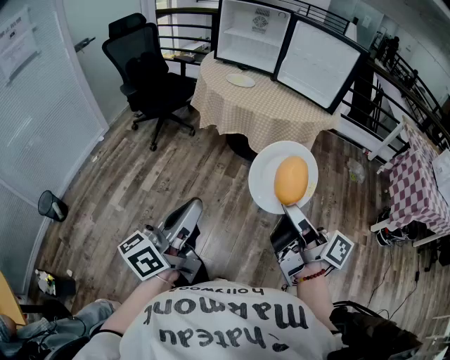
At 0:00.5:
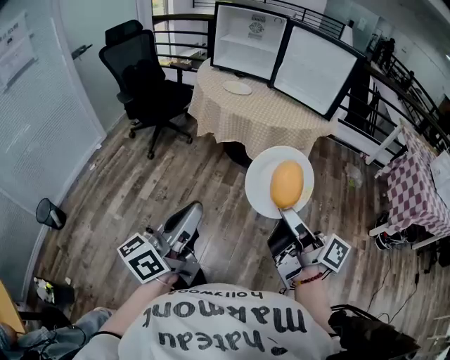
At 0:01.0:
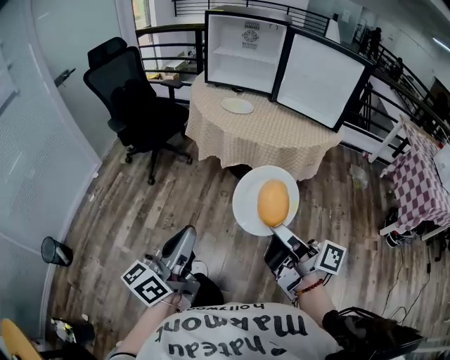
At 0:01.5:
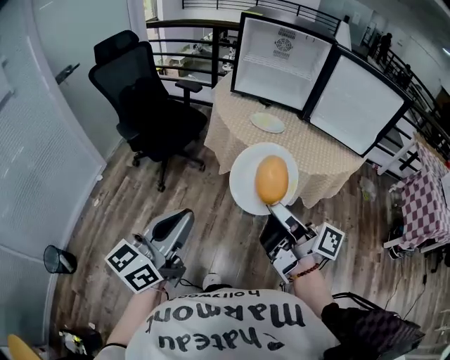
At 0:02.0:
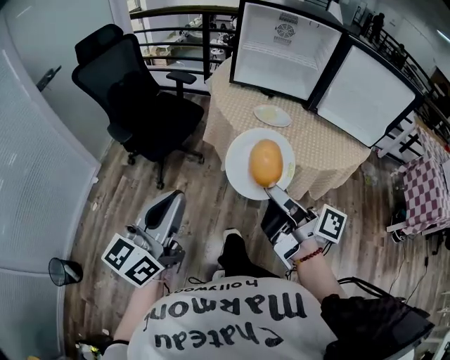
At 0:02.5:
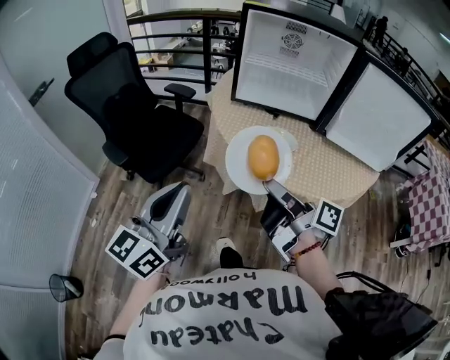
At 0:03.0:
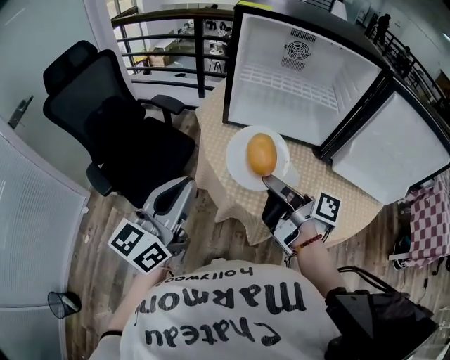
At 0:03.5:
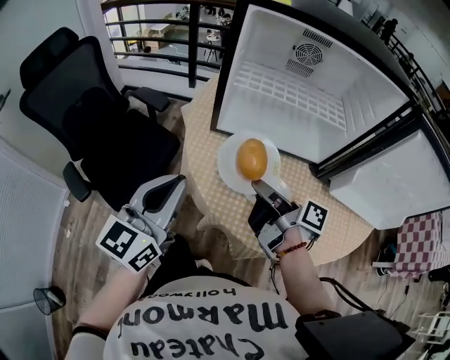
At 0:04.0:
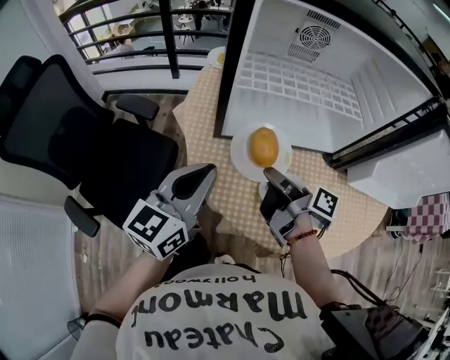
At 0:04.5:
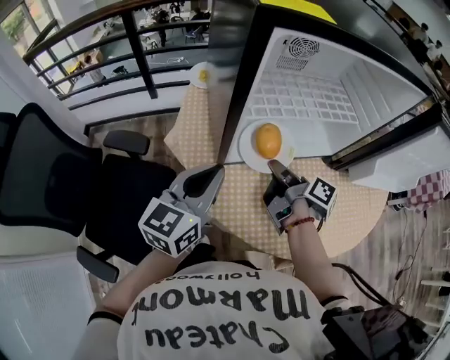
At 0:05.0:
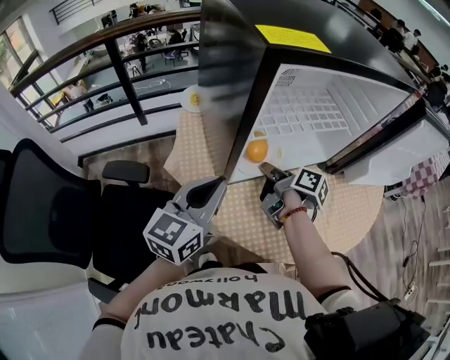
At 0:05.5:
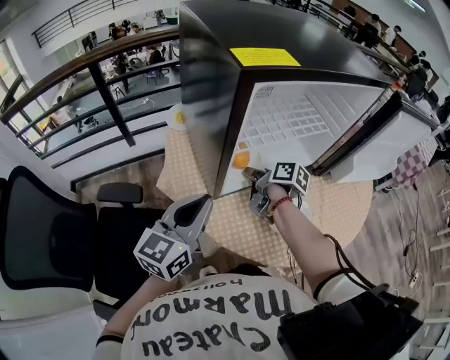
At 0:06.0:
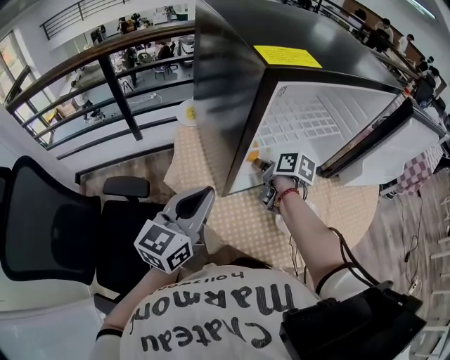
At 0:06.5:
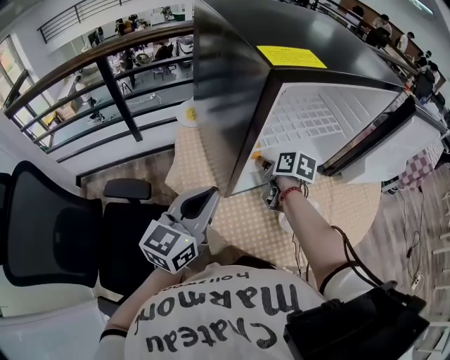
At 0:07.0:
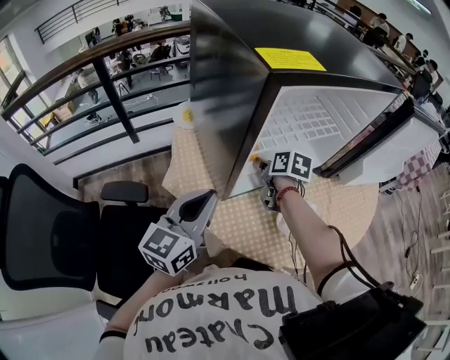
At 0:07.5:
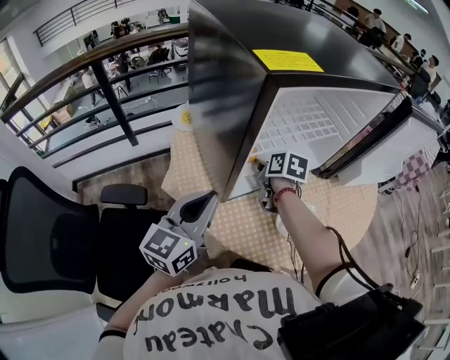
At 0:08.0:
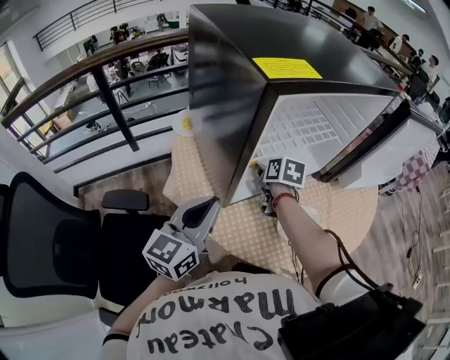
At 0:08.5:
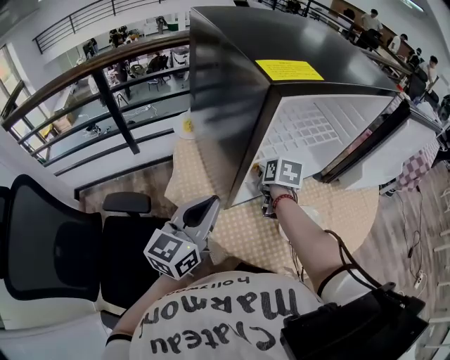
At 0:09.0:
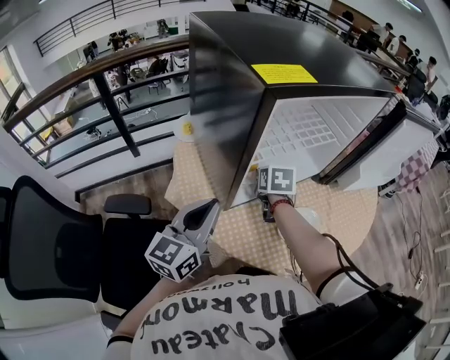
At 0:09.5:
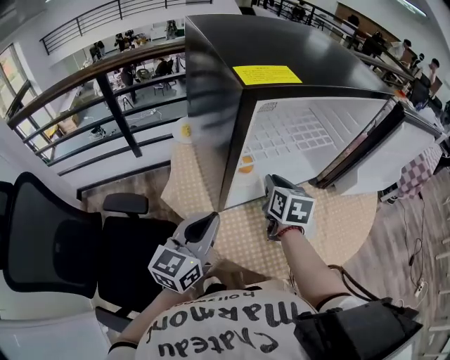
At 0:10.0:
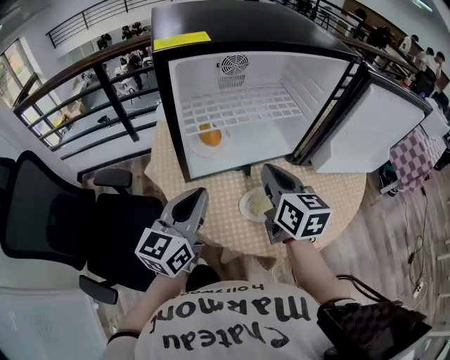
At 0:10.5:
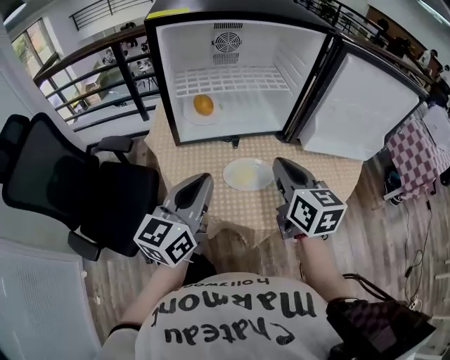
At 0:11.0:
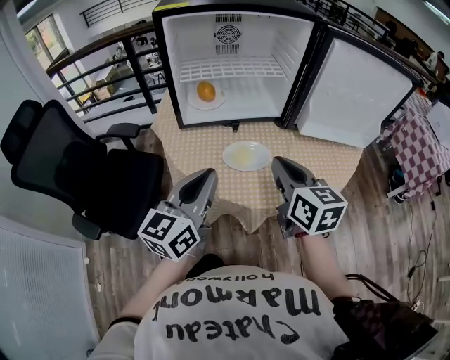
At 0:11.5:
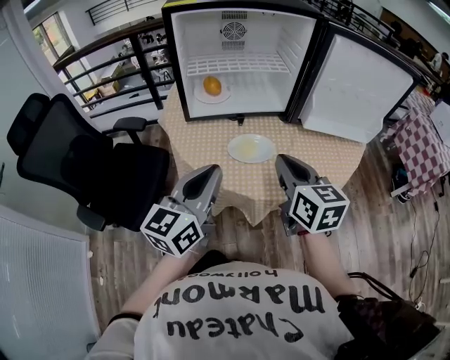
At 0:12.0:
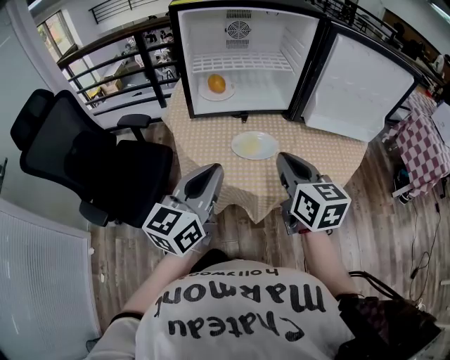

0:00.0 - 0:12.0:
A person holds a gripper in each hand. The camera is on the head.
0:00.0 - 0:02.0: Both grippers are carried forward and to the left, roughly 50 cm. The left gripper changes its angle by approximately 20 degrees.
0:02.0 - 0:04.0: The pair of grippers is taken forward, roughly 50 cm. The left gripper swivels about 20 degrees, while the right gripper changes its angle by roughly 30 degrees.
0:04.0 - 0:06.0: The right gripper heads forward, covering some 15 cm, and changes its angle by approximately 40 degrees. Meanwhile the left gripper moves forward and to the left, some 10 cm.
0:06.0 - 0:08.0: The right gripper changes its angle by about 20 degrees.
0:08.0 - 0:10.0: The right gripper shifts approximately 25 cm upward, backward and to the right, changes its angle by roughly 40 degrees, and closes up. Meanwhile the left gripper shifts about 10 cm to the right.
0:10.0 - 0:12.0: Both grippers move backward and to the right, some 20 cm.

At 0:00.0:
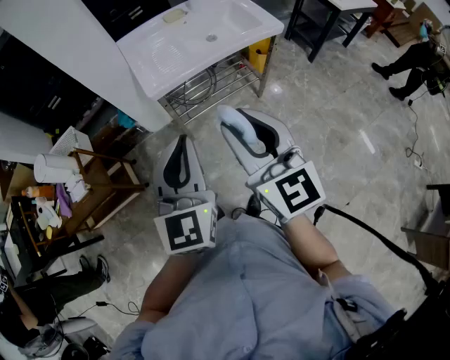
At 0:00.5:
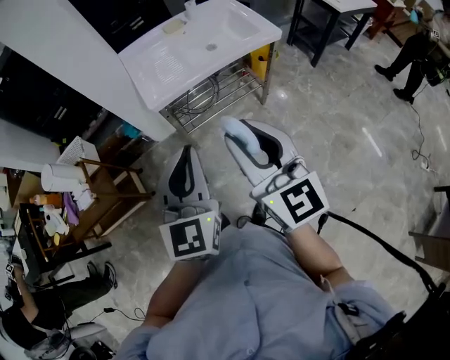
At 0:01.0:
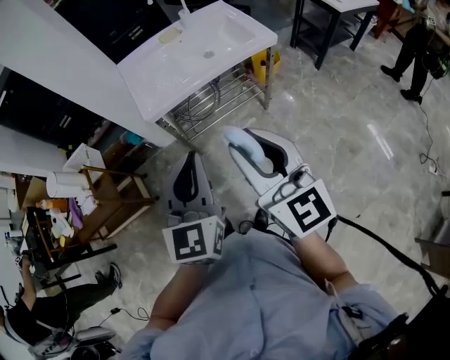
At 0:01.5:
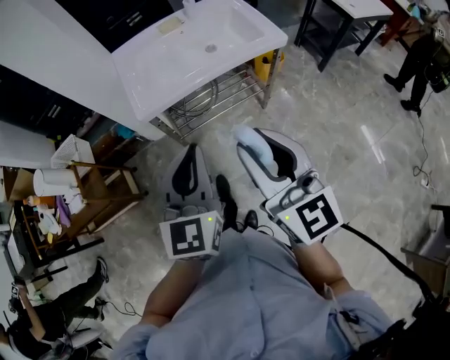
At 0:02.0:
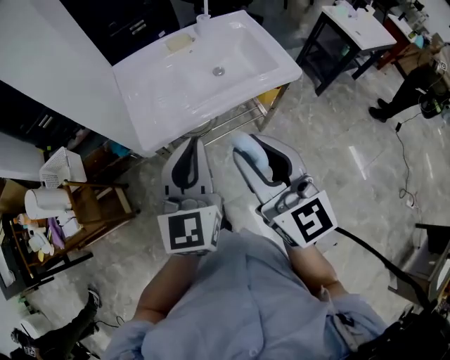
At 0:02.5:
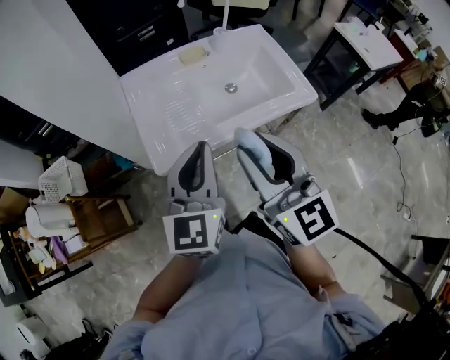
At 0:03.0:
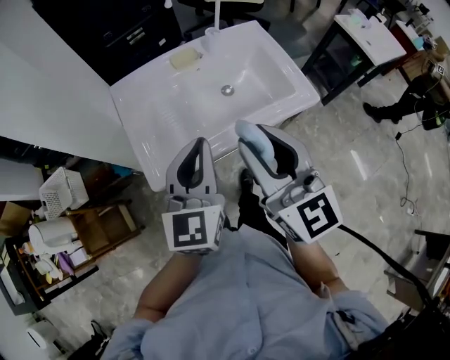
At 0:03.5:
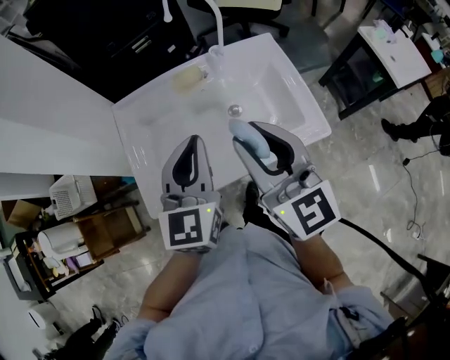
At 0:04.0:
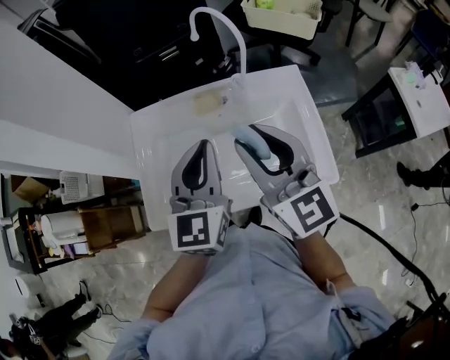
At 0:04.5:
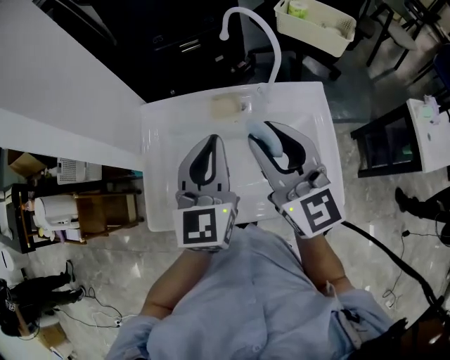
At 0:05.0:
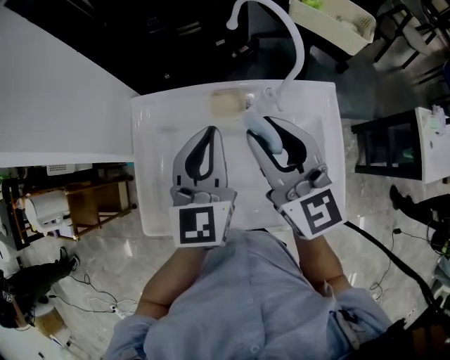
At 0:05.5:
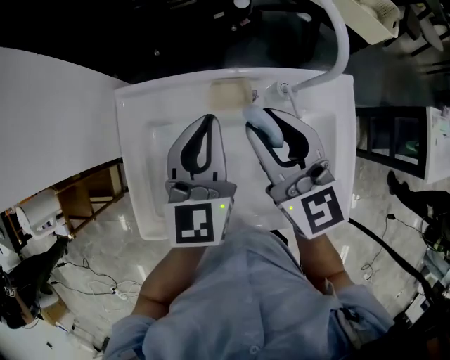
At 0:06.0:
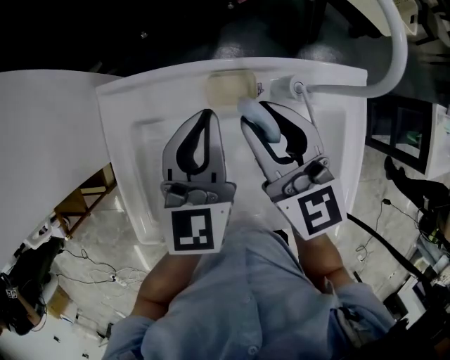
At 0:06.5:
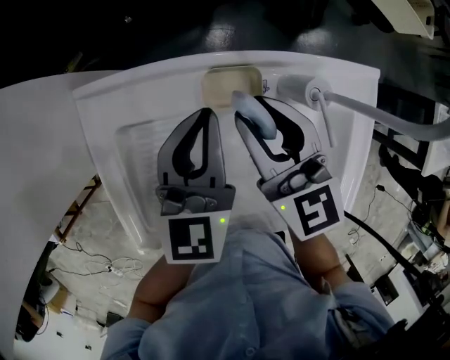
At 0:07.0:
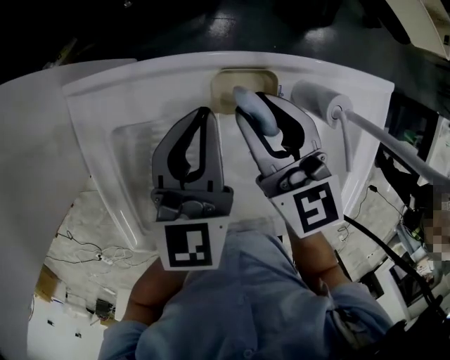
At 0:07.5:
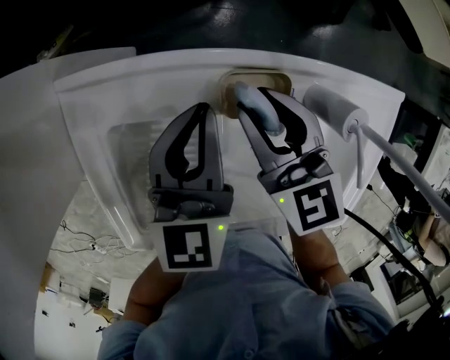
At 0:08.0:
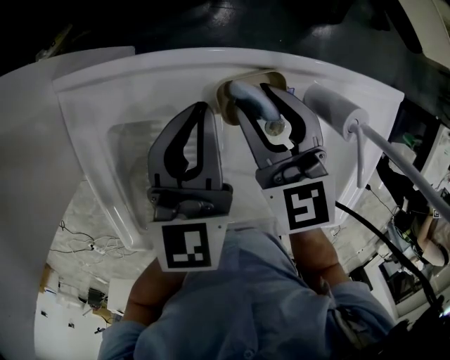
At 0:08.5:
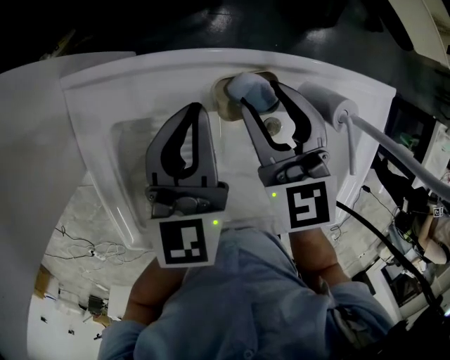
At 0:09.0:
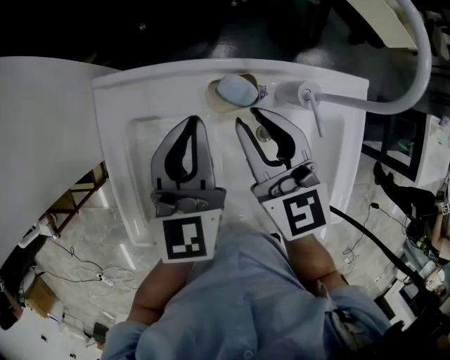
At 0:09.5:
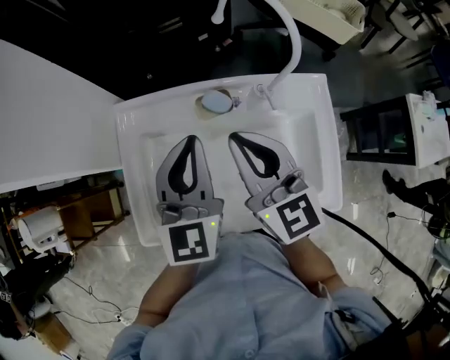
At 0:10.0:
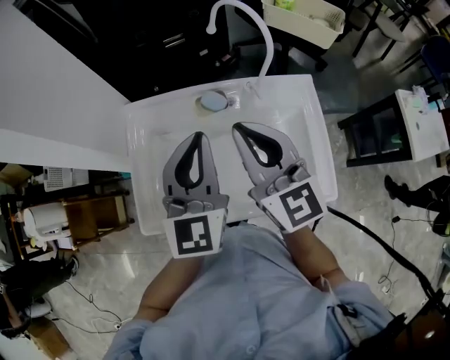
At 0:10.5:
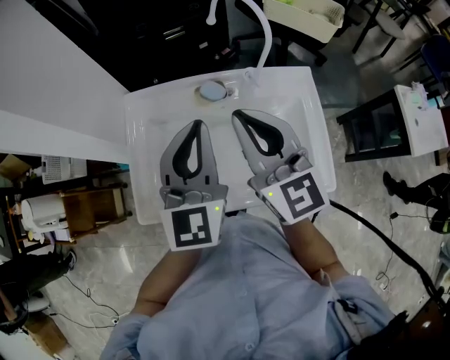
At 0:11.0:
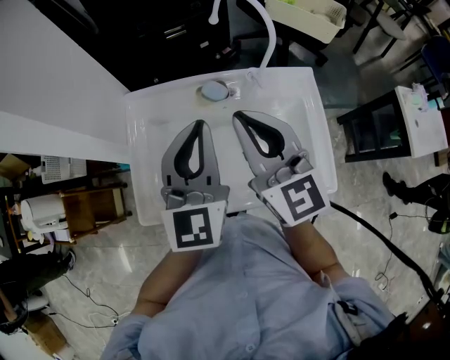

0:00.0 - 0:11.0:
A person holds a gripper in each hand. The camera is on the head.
0:00.0 - 0:02.0: Both grippers travel together forward, some 20 cm.
0:02.0 - 0:03.5: Both grippers move forward, some 25 cm.
0:03.5 - 0:05.5: Both grippers travel together forward, approximately 25 cm. The right gripper turns by about 20 degrees.
0:05.5 - 0:07.5: The grippers both shift downward and forward by some 15 cm.
0:07.5 - 0:09.0: The grippers both shift upward by some 10 cm.
0:09.0 - 0:11.0: The left gripper travels backward and upward by about 20 cm, and rotates approximately 20 degrees. Meanwhile the right gripper goes some 25 cm upward and backward, and closes its fingers.

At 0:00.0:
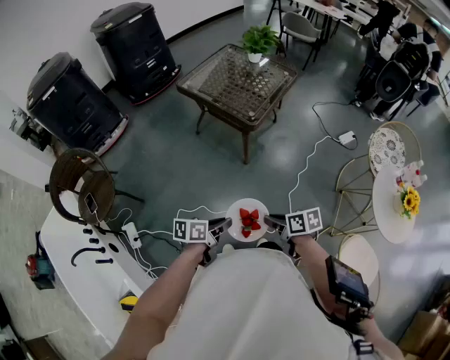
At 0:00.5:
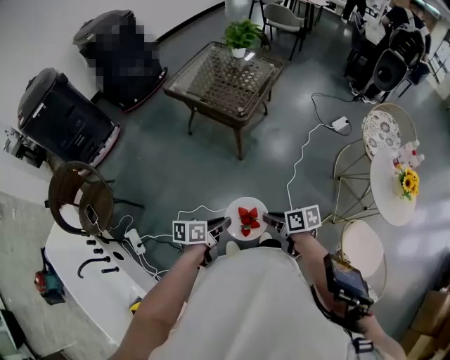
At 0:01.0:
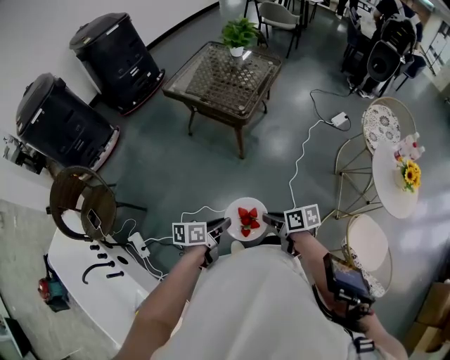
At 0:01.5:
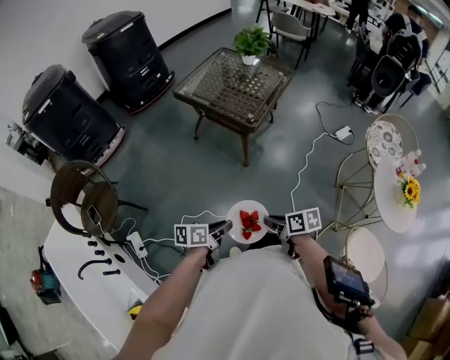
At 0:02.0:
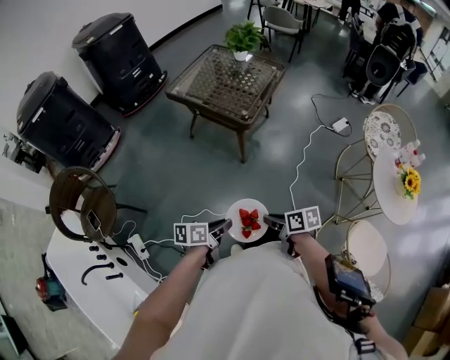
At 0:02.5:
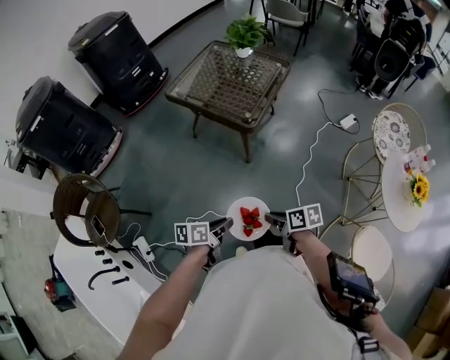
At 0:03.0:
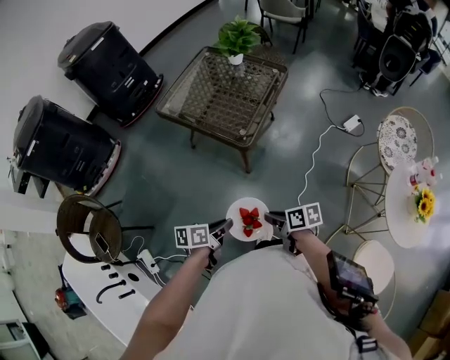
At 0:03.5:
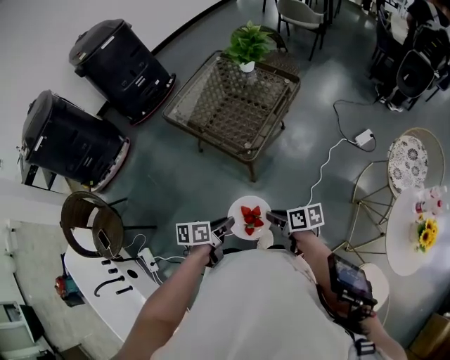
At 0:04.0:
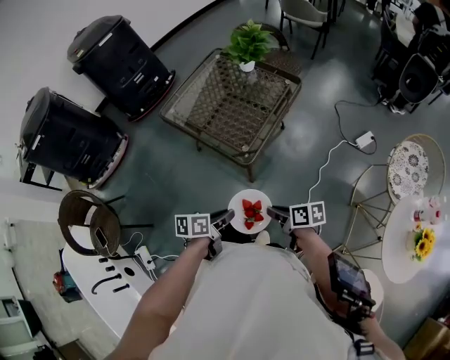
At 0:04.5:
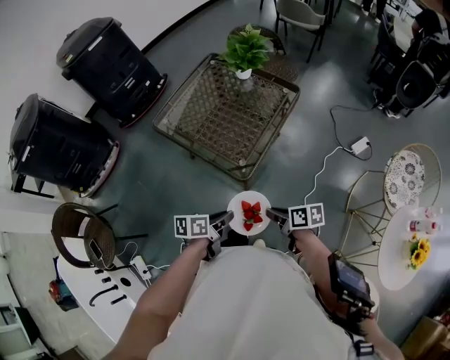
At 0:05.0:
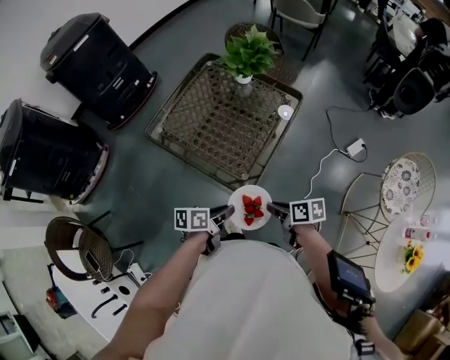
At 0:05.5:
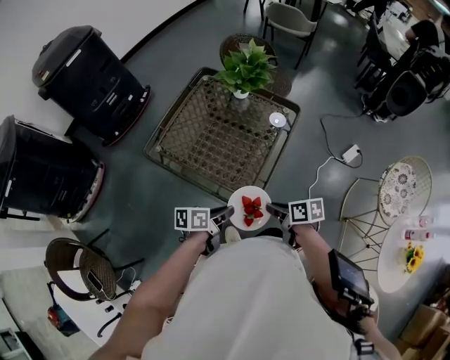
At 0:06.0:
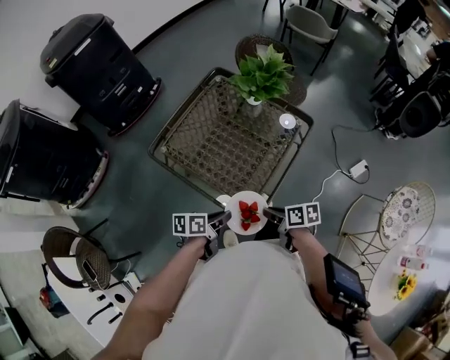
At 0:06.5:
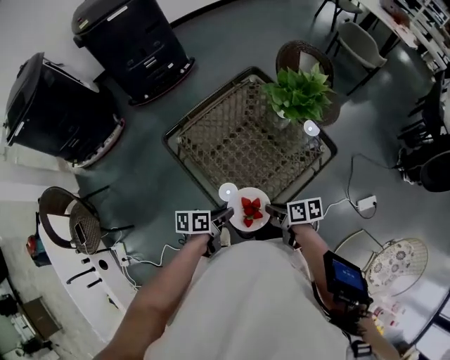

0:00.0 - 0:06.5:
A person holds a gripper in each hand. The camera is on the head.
0:00.0 - 0:02.0: The grippers move only a little.
0:02.0 - 0:04.5: Both grippers move forward, about 35 cm.
0:04.5 - 0:06.5: The right gripper changes place by some 30 cm. Meanwhile the left gripper shifts by roughly 30 cm.
